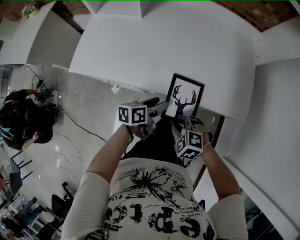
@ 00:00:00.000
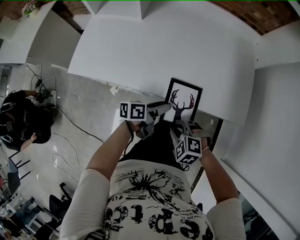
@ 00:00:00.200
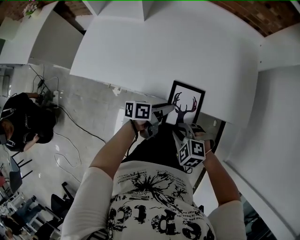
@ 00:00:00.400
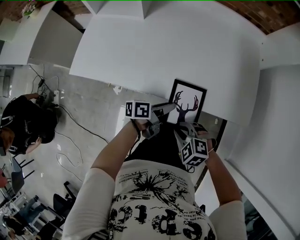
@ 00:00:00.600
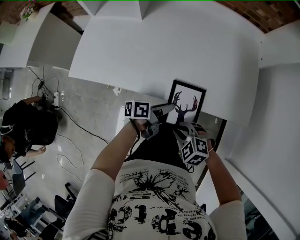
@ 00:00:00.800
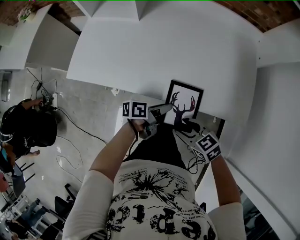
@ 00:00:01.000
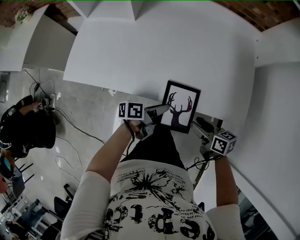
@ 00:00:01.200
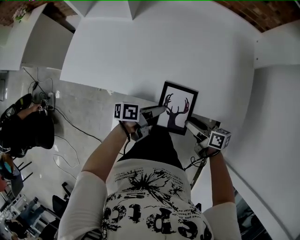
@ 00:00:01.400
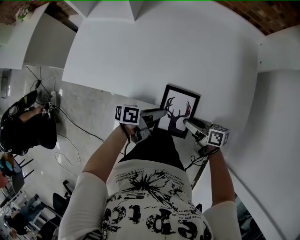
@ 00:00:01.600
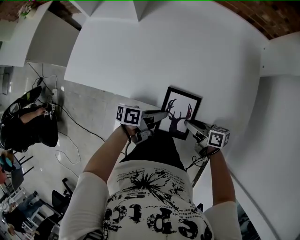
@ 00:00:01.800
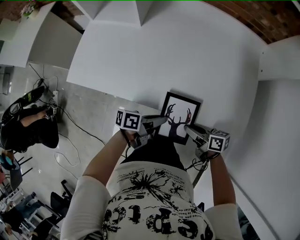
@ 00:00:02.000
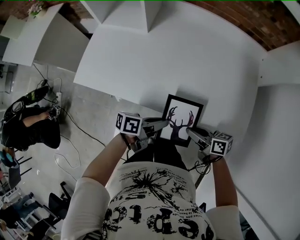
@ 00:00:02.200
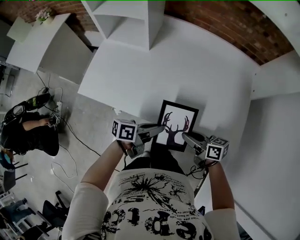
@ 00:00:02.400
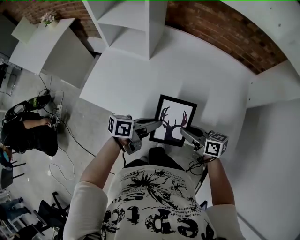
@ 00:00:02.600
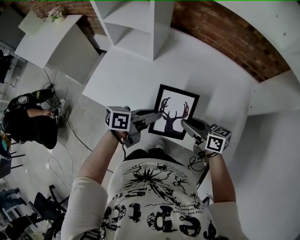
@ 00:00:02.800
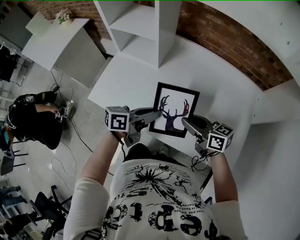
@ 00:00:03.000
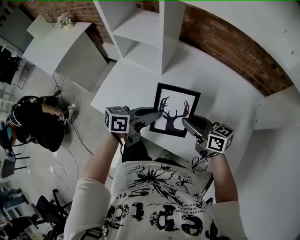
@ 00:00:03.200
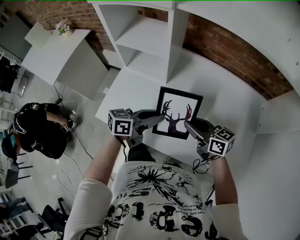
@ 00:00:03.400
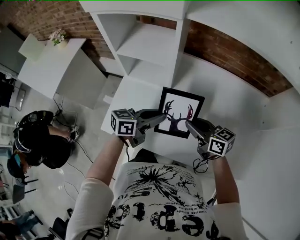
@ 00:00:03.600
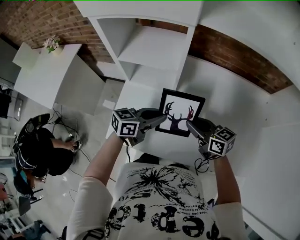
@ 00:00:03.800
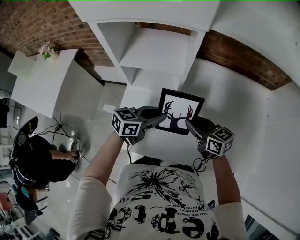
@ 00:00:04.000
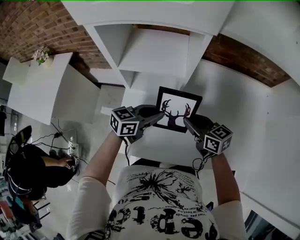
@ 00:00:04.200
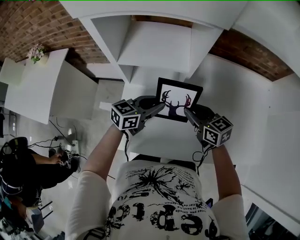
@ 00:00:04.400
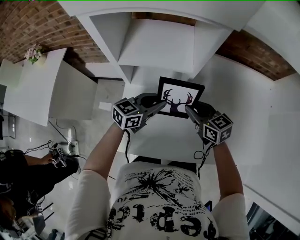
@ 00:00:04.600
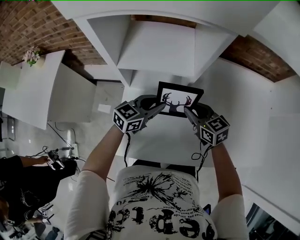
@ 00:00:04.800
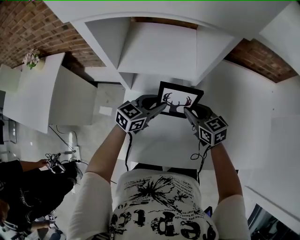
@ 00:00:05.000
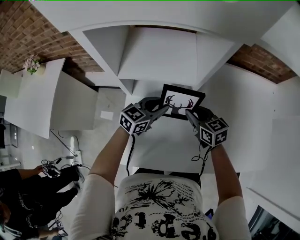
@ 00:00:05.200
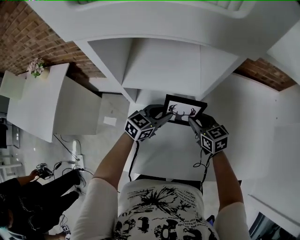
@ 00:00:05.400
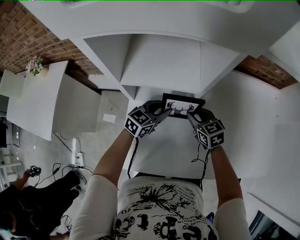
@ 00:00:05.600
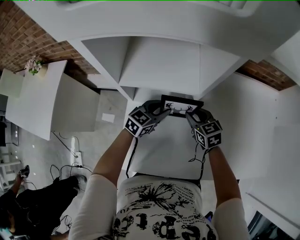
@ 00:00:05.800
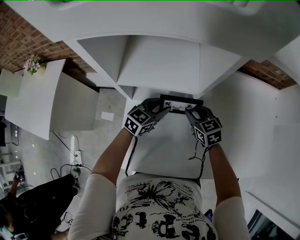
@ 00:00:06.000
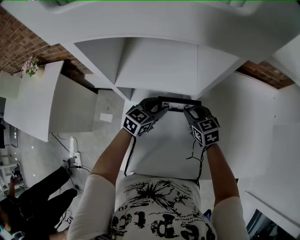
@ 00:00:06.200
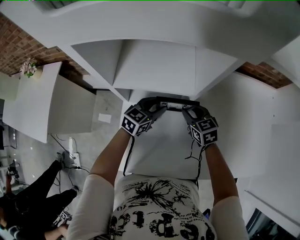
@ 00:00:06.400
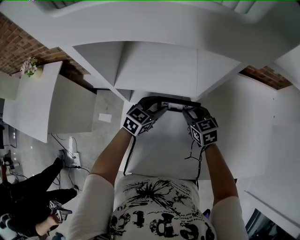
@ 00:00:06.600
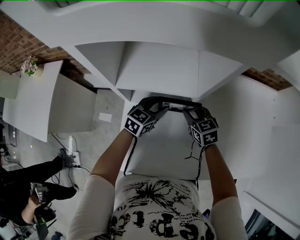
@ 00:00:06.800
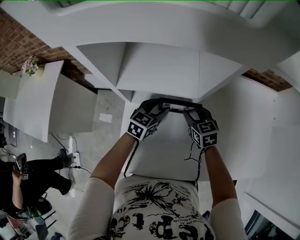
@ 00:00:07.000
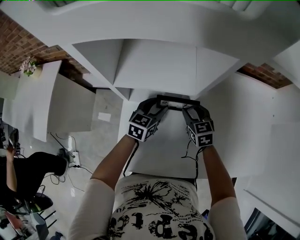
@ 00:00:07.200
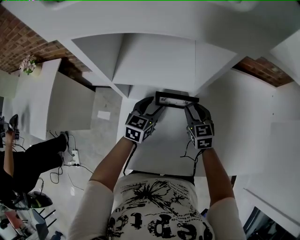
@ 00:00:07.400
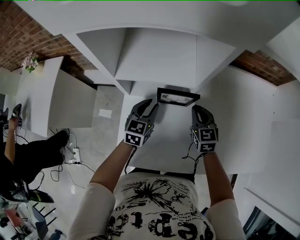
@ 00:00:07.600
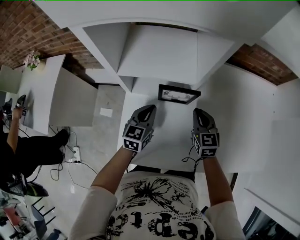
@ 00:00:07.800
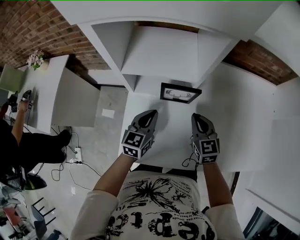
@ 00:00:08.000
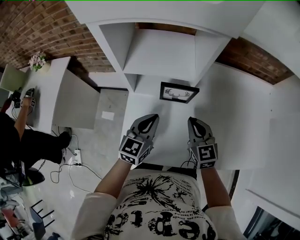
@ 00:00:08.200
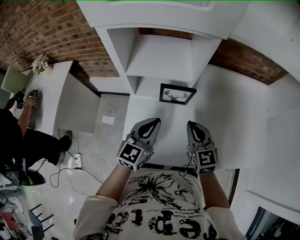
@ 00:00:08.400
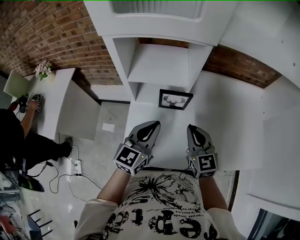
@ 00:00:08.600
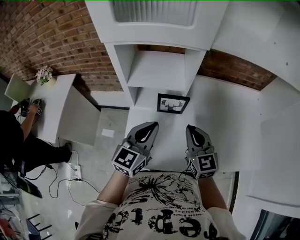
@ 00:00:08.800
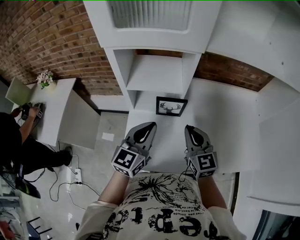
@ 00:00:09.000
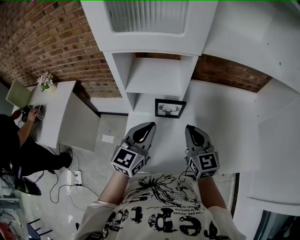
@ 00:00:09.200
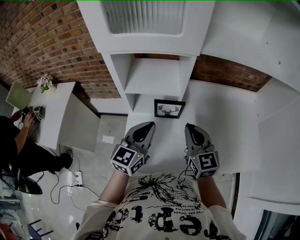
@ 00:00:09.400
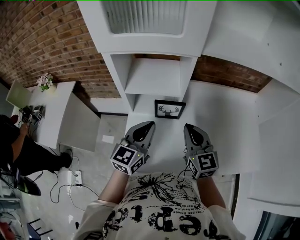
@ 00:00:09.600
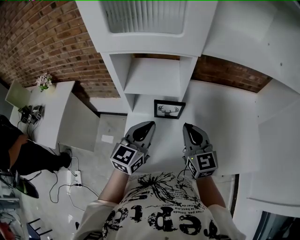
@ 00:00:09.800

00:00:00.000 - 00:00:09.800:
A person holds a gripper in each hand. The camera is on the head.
00:00:00.000 - 00:00:01.400: The left gripper turns by some 20 degrees, and closes, while the right gripper shifts by some 10 cm, twists about 80 degrees clockwise, seen from behind, and opens up.
00:00:01.400 - 00:00:02.800: The right gripper ends up approximately 30 cm from where it was, rotates about 30 degrees, and closes up, while the left gripper moves upward, some 20 cm, and swivels roughly 30 degrees.
00:00:02.800 - 00:00:04.200: Both grippers travel together to the left and forward, some 25 cm. The left gripper changes its angle by roughly 30 degrees; the right gripper rotates about 20 degrees.
00:00:04.200 - 00:00:05.600: The grippers both shift forward and downward by some 10 cm. The right gripper changes its angle by some 20 degrees.
00:00:05.600 - 00:00:07.000: There are only small adjustments of the grippers.
00:00:07.000 - 00:00:08.400: Both grippers travel together backward and upward, some 20 cm. The right gripper turns by about 20 degrees, and closes its fingers. The left gripper swivels some 20 degrees, and closes.
00:00:08.400 - 00:00:09.800: The two grippers go roughly 10 cm upward.

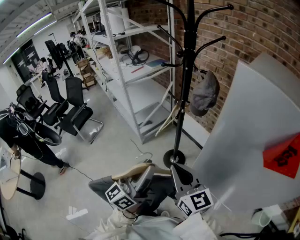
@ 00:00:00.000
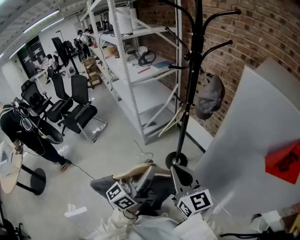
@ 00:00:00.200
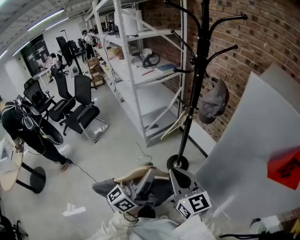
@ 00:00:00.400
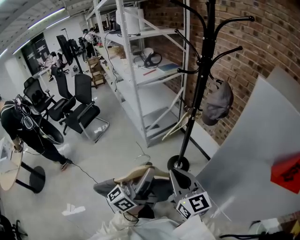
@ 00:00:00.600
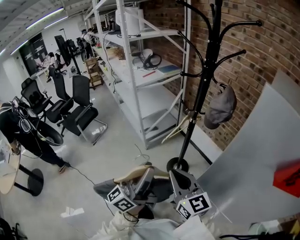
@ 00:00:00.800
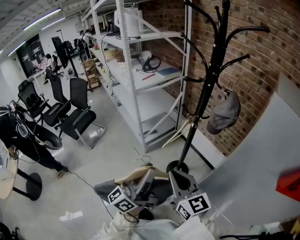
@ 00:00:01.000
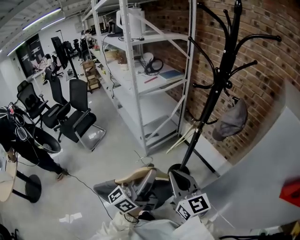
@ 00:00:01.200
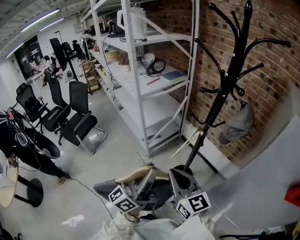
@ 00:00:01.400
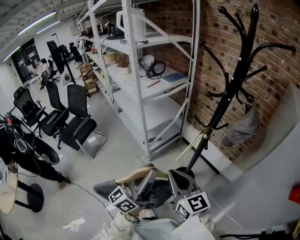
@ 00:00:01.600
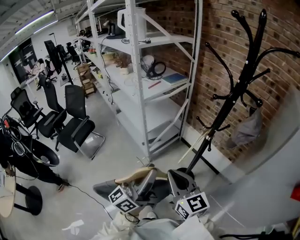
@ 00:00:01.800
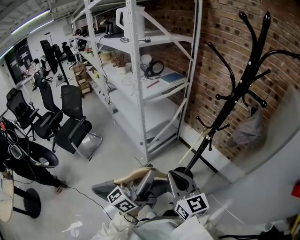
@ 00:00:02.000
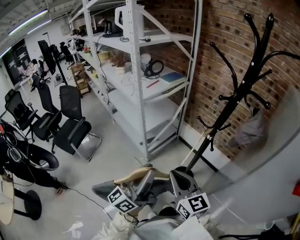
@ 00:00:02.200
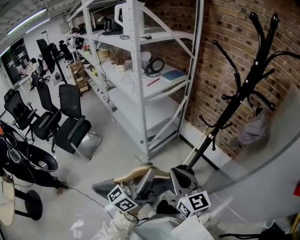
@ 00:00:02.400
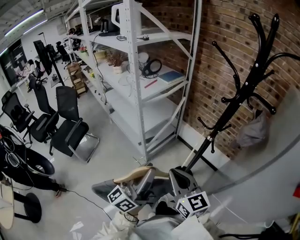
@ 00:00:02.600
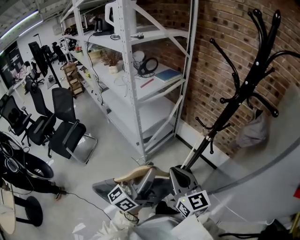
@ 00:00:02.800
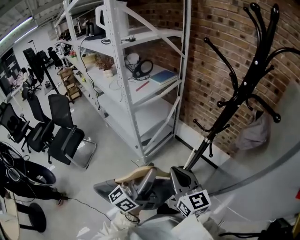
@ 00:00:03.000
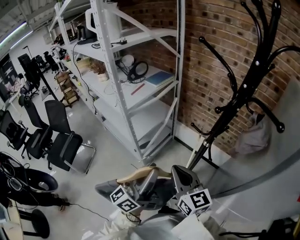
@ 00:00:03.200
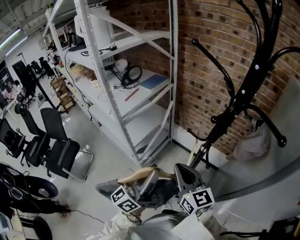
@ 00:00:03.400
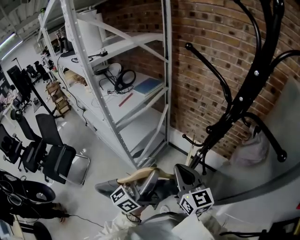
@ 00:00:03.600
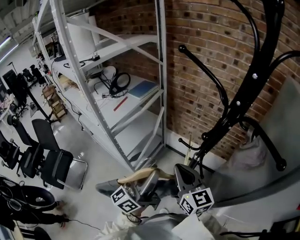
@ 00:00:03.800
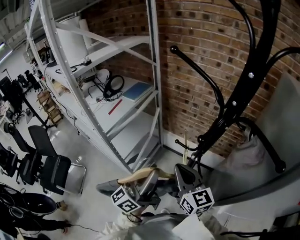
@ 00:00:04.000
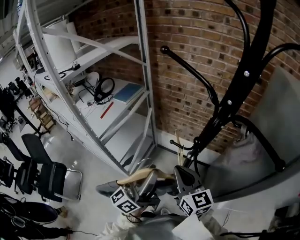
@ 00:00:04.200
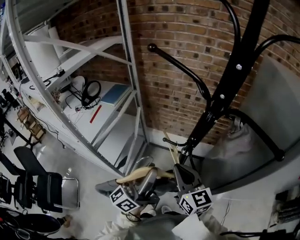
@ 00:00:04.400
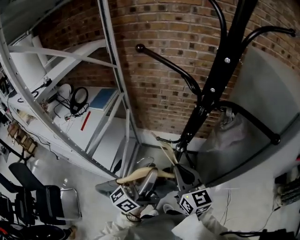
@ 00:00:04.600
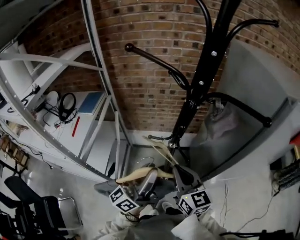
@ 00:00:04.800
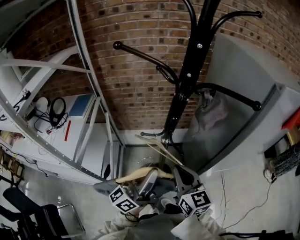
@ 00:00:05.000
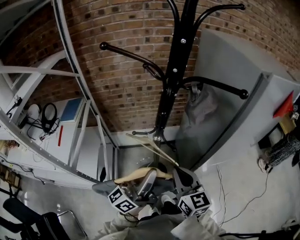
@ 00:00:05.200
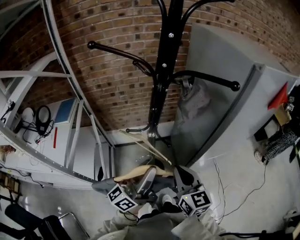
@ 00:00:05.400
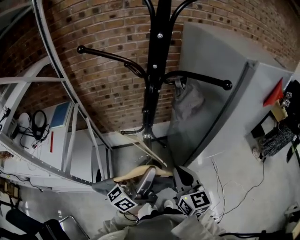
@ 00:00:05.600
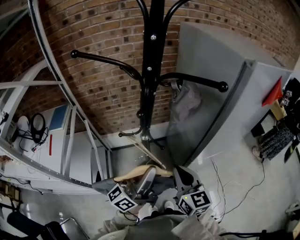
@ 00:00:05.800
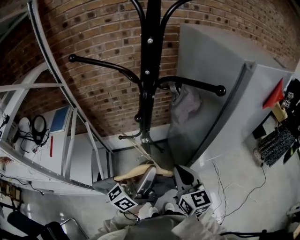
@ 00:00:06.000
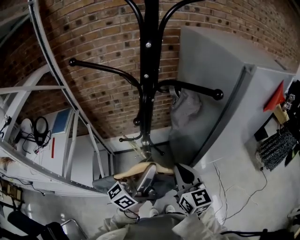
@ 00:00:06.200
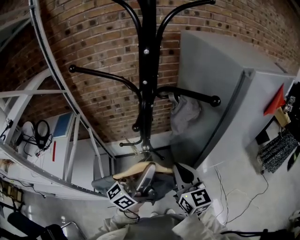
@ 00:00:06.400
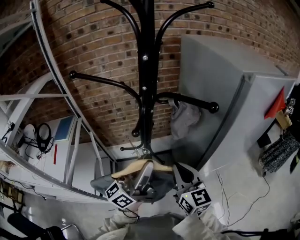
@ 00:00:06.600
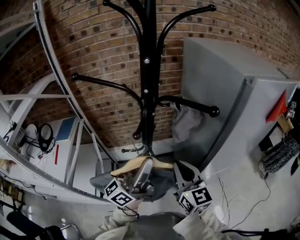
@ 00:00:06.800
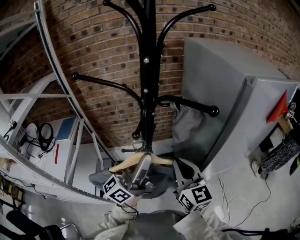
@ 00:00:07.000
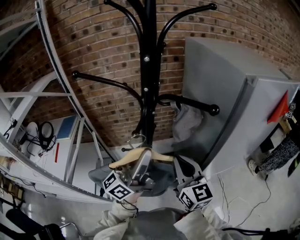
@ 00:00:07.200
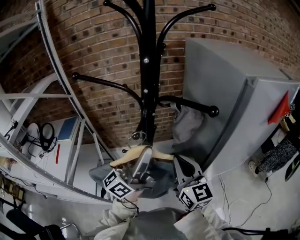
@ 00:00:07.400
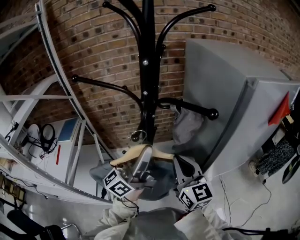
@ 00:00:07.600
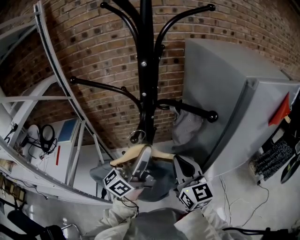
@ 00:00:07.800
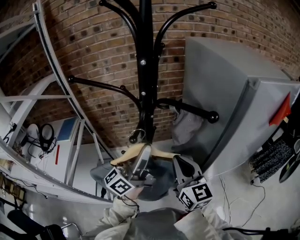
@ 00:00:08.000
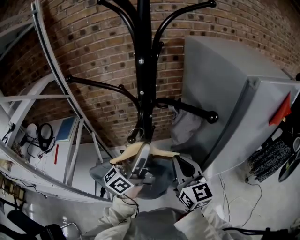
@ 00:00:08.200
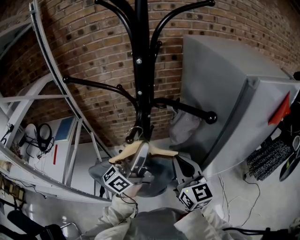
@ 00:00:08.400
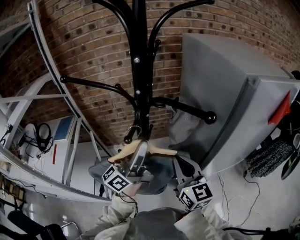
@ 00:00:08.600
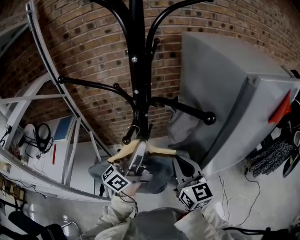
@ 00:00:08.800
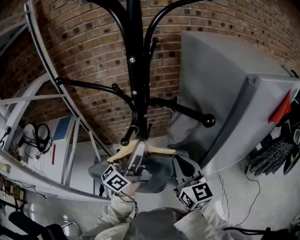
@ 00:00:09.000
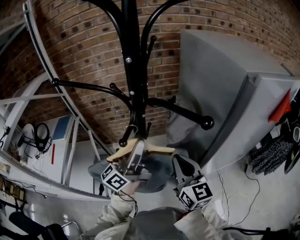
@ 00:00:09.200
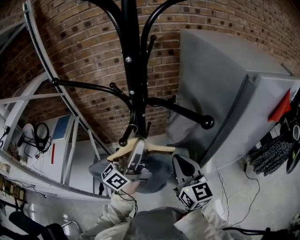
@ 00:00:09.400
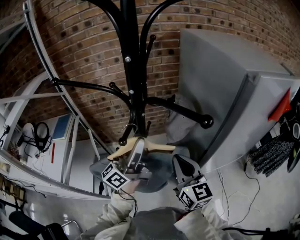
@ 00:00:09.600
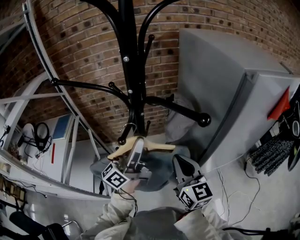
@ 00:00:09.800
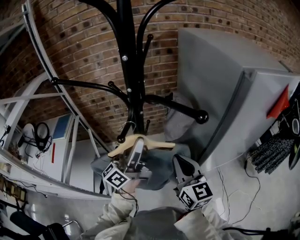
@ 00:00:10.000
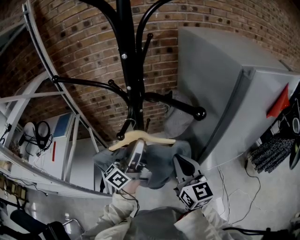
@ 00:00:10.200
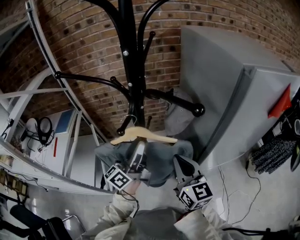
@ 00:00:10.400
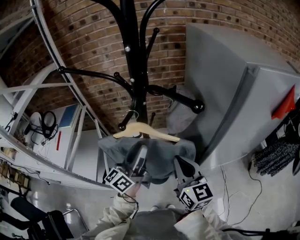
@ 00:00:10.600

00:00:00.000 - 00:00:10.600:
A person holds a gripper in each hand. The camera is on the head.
00:00:00.000 - 00:00:01.600: The right gripper goes about 25 cm to the left and forward. The left gripper shifts roughly 25 cm forward and to the left.
00:00:01.600 - 00:00:03.000: The grippers both shift forward by roughly 10 cm.
00:00:03.000 - 00:00:04.600: The right gripper changes place by roughly 20 cm, and swivels approximately 30 degrees. The left gripper changes place by roughly 20 cm, and rotates roughly 30 degrees.
00:00:04.600 - 00:00:06.000: The right gripper moves some 15 cm, and swivels about 30 degrees. Meanwhile the left gripper moves approximately 10 cm, and turns by some 30 degrees.
00:00:06.000 - 00:00:07.600: The grippers both shift forward and upward by some 10 cm.
00:00:07.600 - 00:00:09.000: The left gripper moves roughly 5 cm.
00:00:09.000 - 00:00:10.600: The left gripper travels downward by some 5 cm.

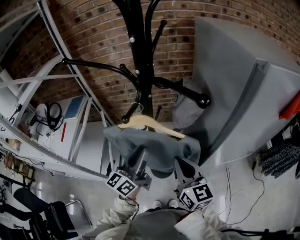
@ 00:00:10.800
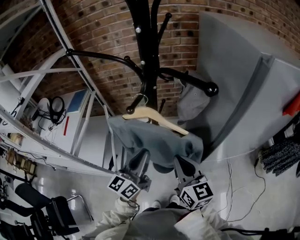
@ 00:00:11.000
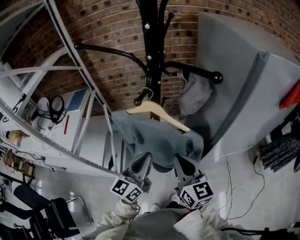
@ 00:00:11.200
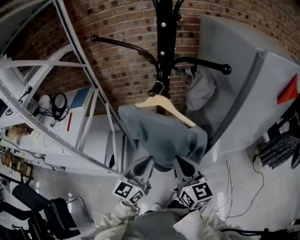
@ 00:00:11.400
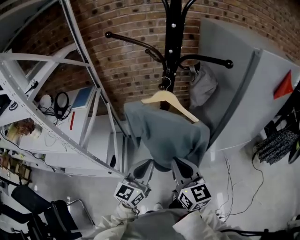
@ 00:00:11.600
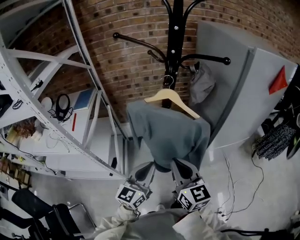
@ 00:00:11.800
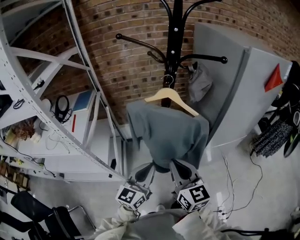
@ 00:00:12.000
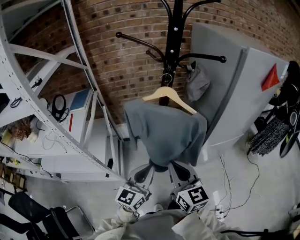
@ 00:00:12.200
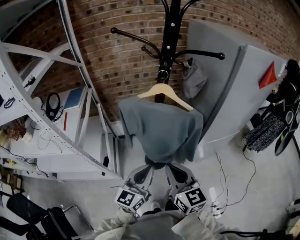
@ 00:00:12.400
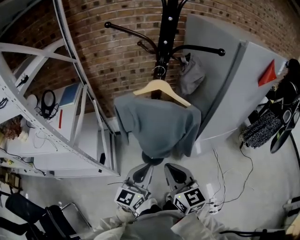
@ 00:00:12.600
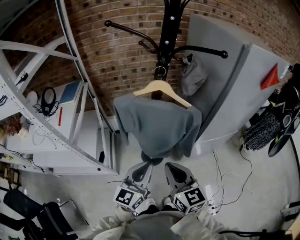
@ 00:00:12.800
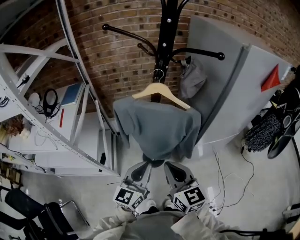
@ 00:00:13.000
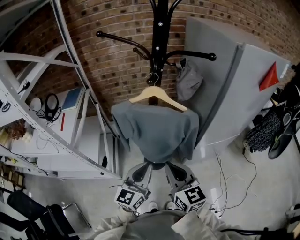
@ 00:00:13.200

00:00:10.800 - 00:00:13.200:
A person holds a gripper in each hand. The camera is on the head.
00:00:10.800 - 00:00:12.000: The two grippers go some 20 cm backward and to the left. The left gripper turns by approximately 20 degrees.
00:00:12.000 - 00:00:13.200: The grippers make only small movements.
